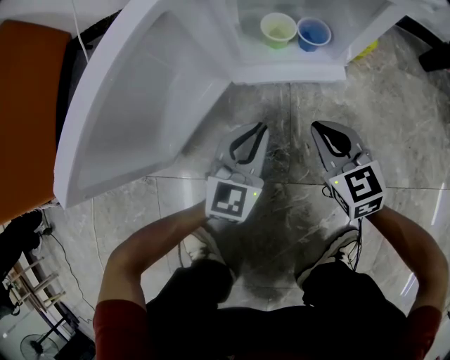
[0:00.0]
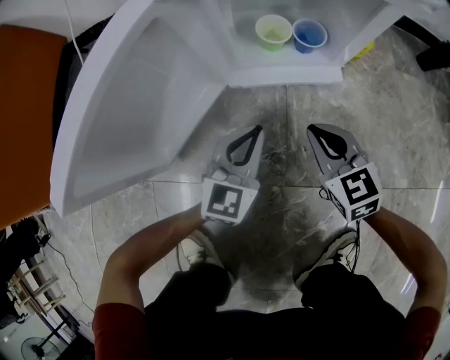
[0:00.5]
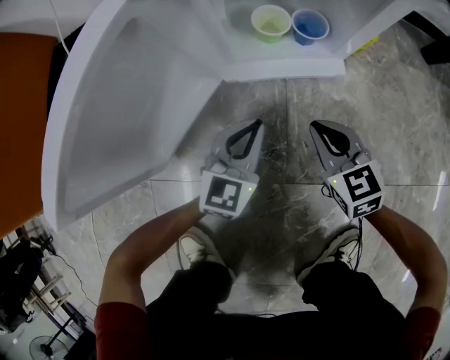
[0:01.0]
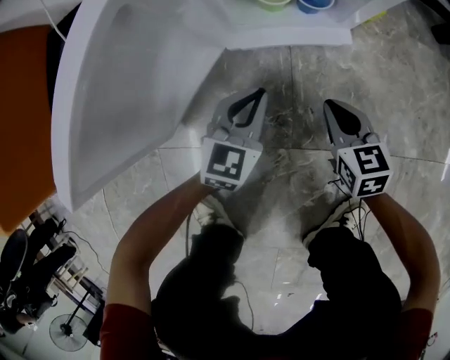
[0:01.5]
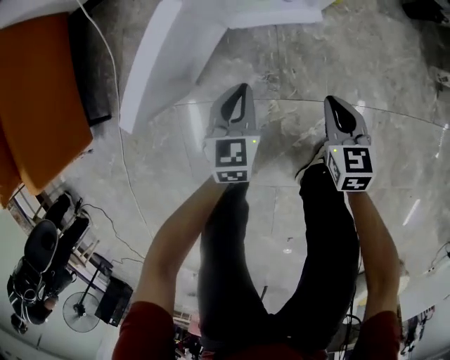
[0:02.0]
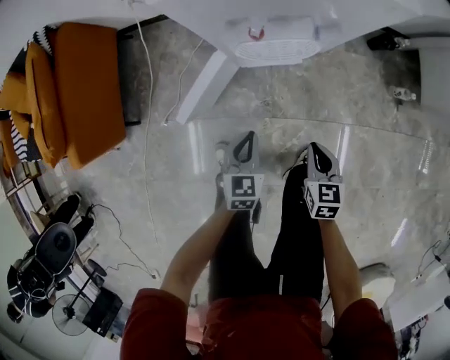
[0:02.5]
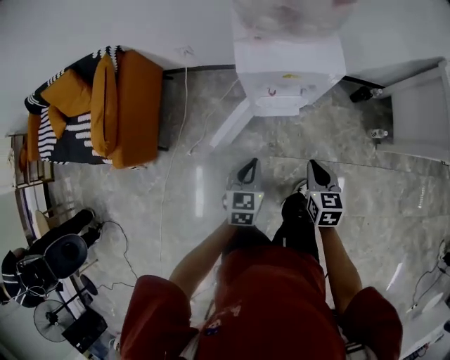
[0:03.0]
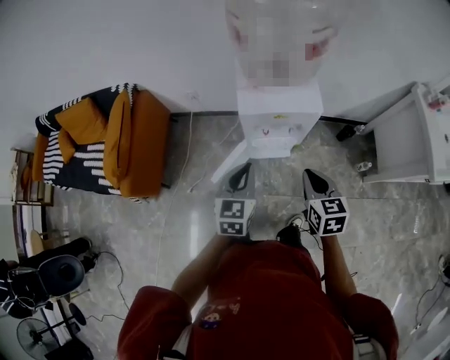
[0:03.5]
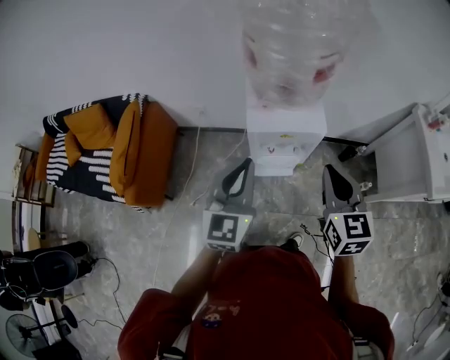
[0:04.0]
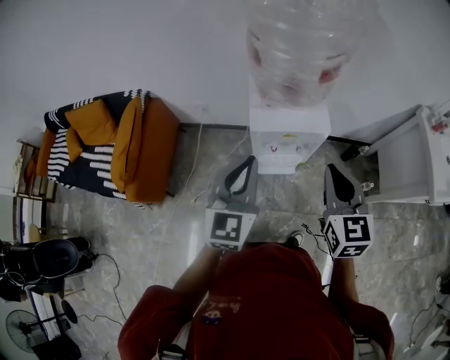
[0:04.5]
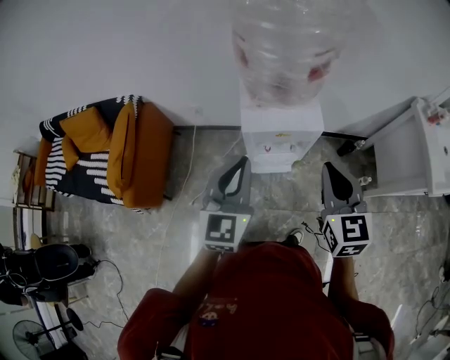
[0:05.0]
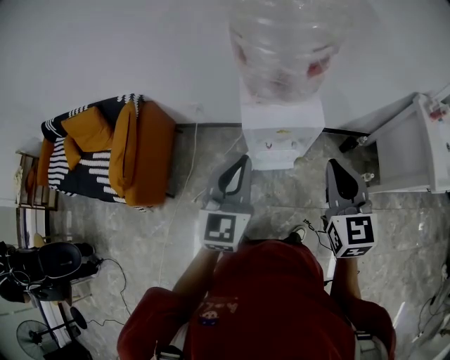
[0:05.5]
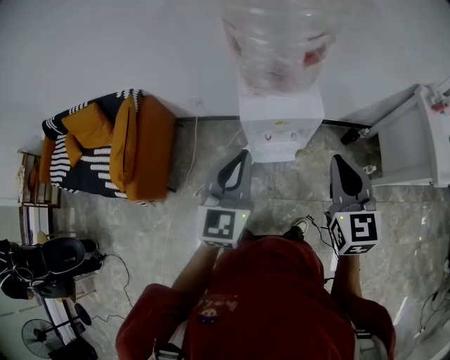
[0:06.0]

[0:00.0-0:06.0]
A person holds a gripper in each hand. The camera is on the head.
0:00.0 to 0:02.0: The left gripper heads upward, covering roughly 15 cm, and changes its angle by roughly 30 degrees; the right gripper heads upward, backward and to the right, covering some 20 cm, and swivels some 20 degrees.
0:02.0 to 0:04.0: Both grippers move upward, some 80 cm. The right gripper turns by about 30 degrees; the left gripper tips its fingers upward by about 40 degrees.
0:04.0 to 0:06.0: The grippers stay close to where they were, moving slightly.

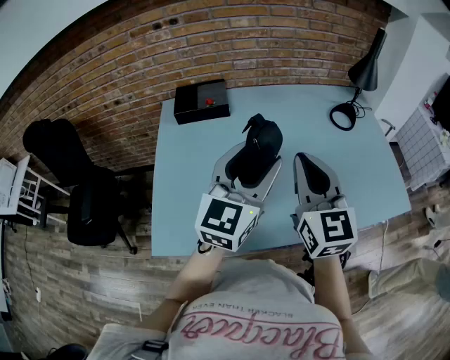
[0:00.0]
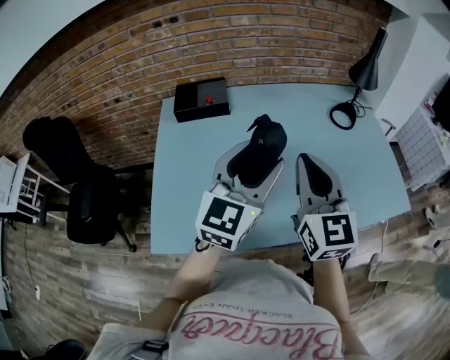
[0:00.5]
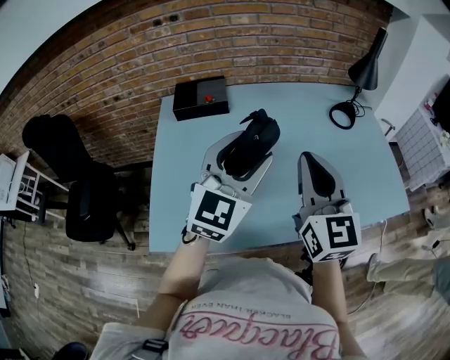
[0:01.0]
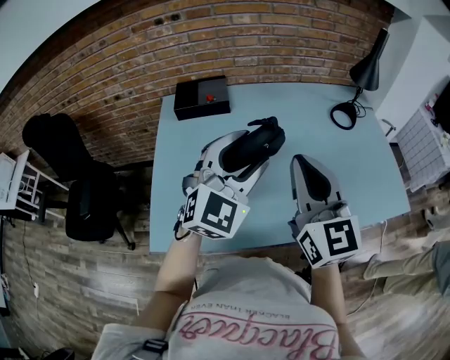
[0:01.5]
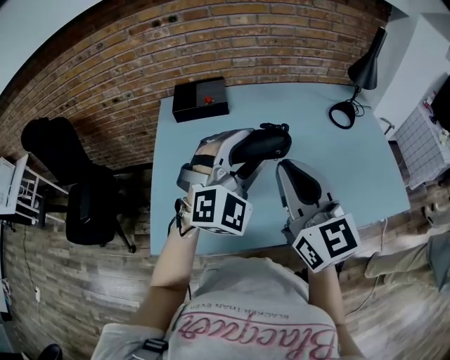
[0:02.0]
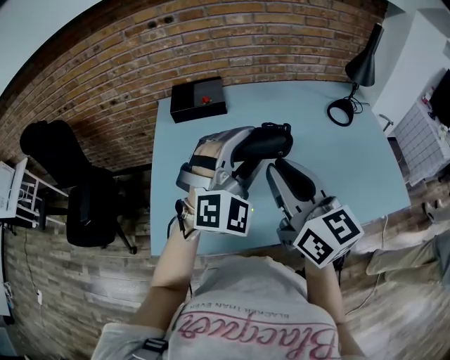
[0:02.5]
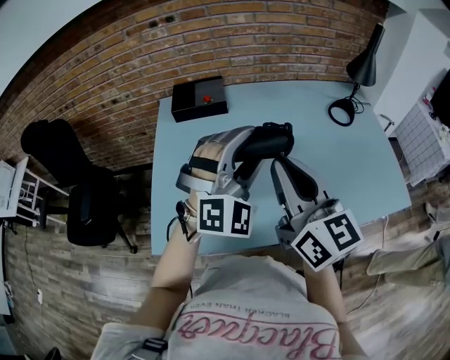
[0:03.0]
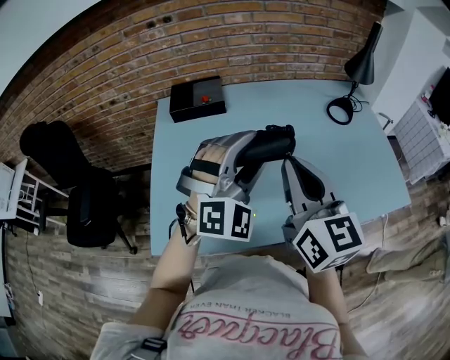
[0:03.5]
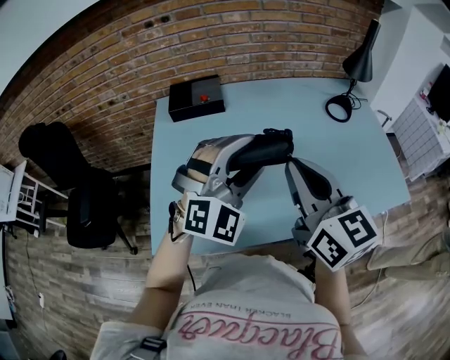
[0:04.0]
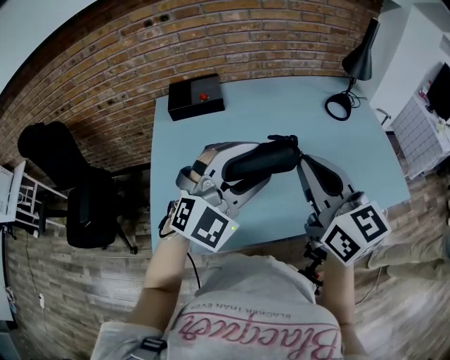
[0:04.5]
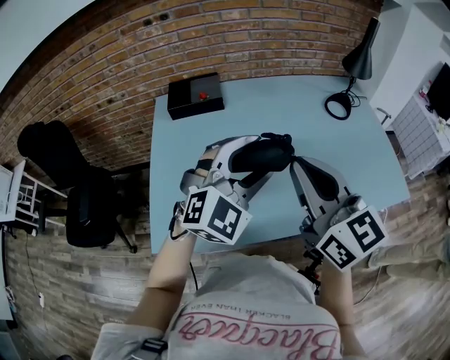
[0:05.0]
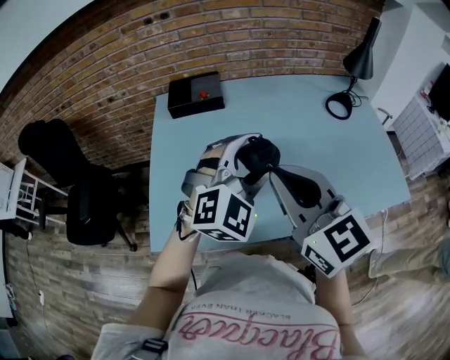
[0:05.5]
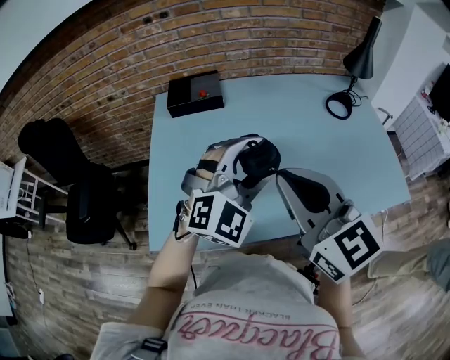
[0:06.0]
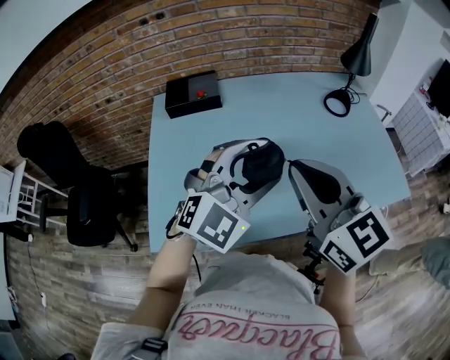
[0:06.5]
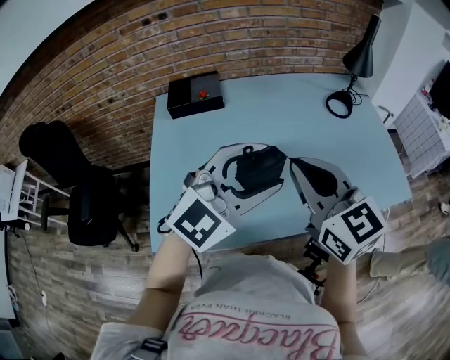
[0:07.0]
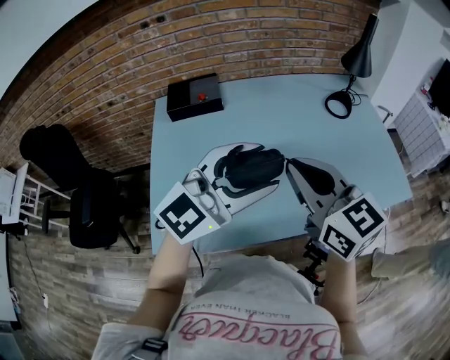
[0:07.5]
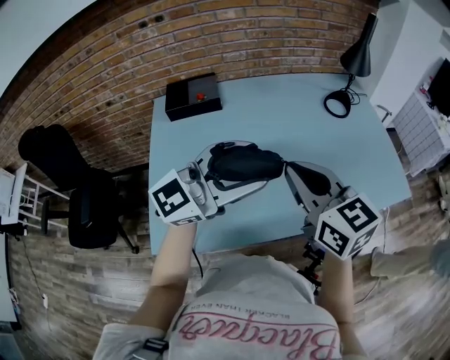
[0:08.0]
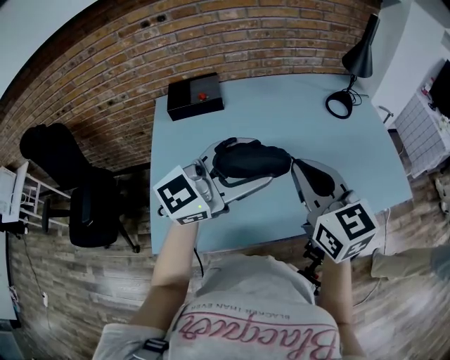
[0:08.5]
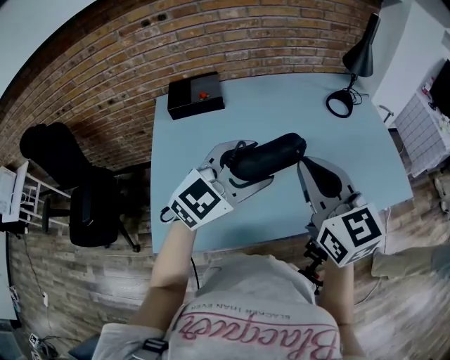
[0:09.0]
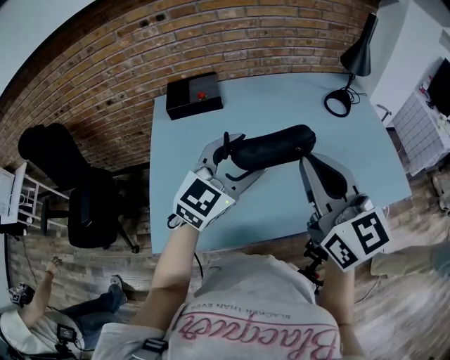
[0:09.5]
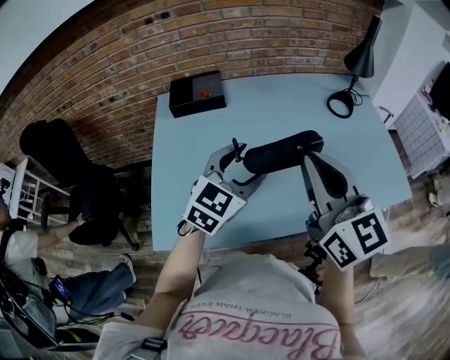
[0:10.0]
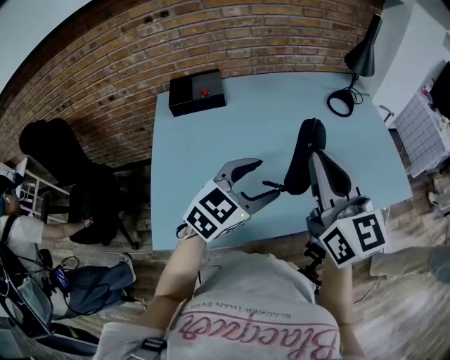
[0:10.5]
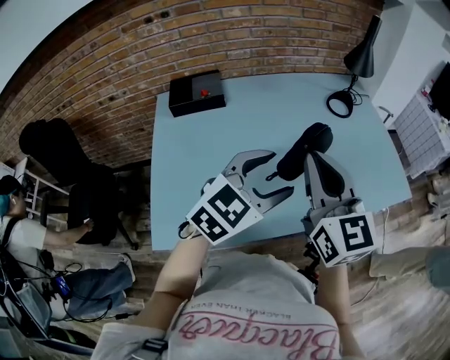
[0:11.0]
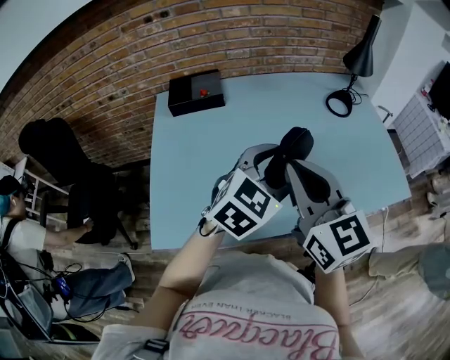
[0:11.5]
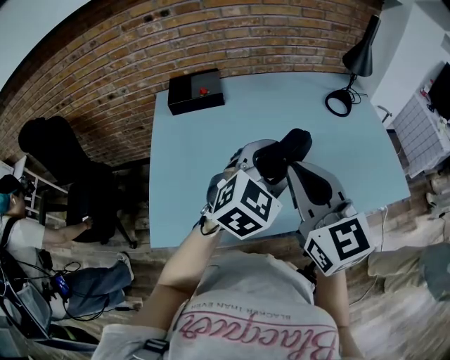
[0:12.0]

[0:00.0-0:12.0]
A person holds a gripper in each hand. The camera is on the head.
0:00.0 to 0:02.0: The right gripper moves approximately 5 cm. Meanwhile the left gripper twists roughly 50 degrees clockwise, seen from behind.
0:04.0 to 0:06.0: The grippers move only a little.
0:06.0 to 0:08.0: The left gripper moves some 5 cm, and changes its angle by some 60 degrees. Meanwhile the right gripper moves some 5 cm.
0:08.0 to 0:10.0: The left gripper is displaced downward by some 10 cm, and changes its angle by approximately 40 degrees. The right gripper moves upward, about 5 cm.
0:10.0 to 0:12.0: The left gripper heads to the right, covering some 5 cm.

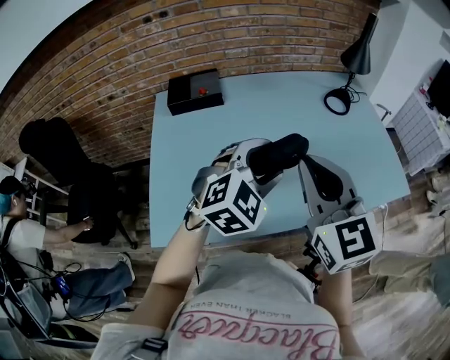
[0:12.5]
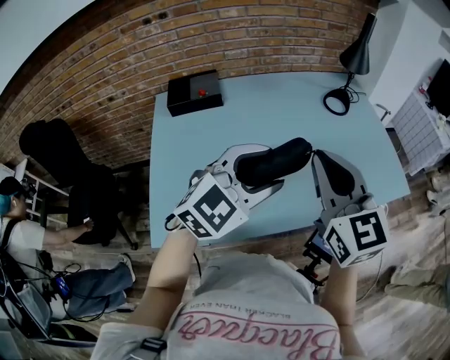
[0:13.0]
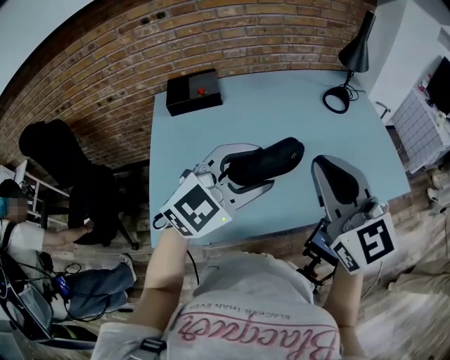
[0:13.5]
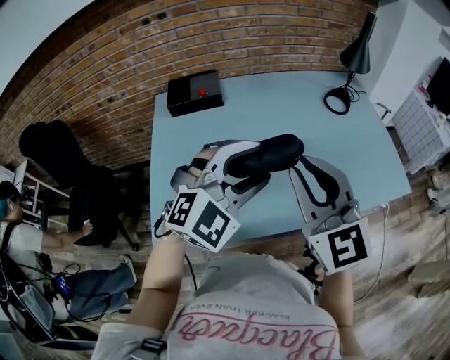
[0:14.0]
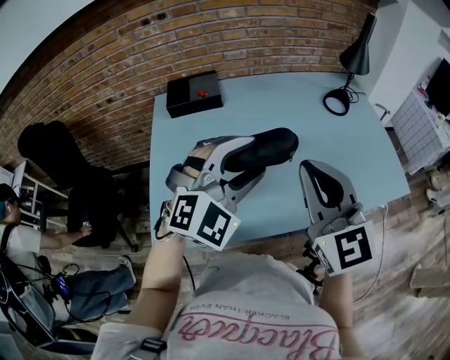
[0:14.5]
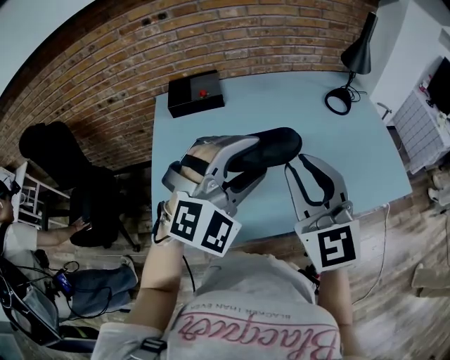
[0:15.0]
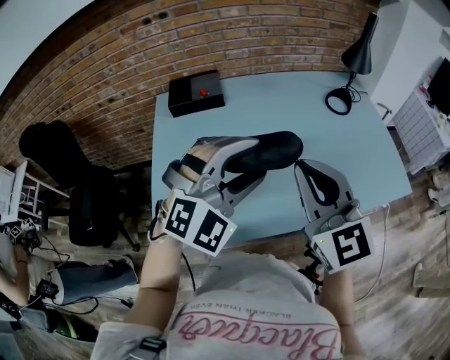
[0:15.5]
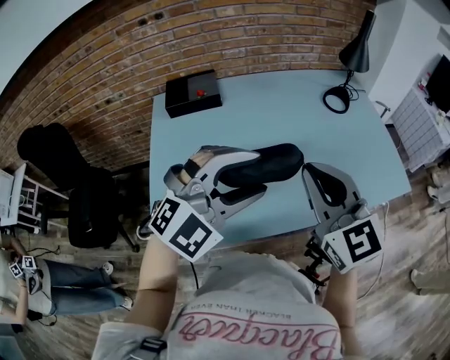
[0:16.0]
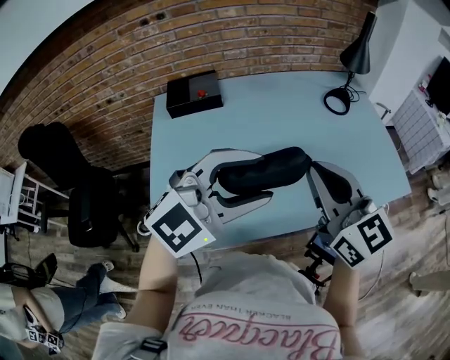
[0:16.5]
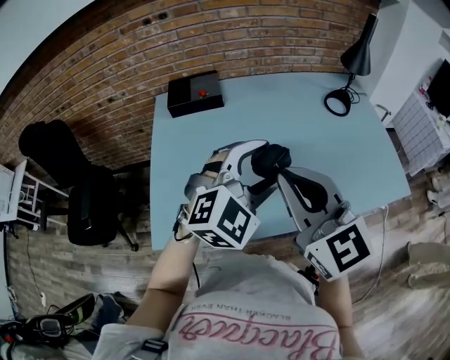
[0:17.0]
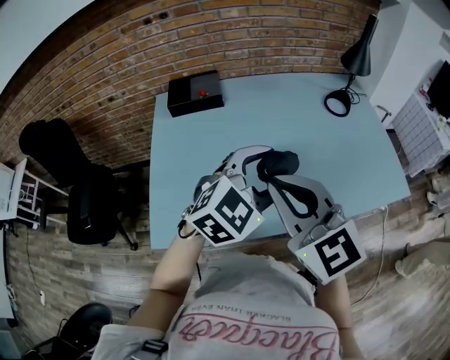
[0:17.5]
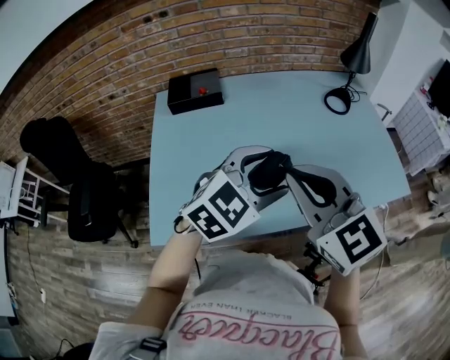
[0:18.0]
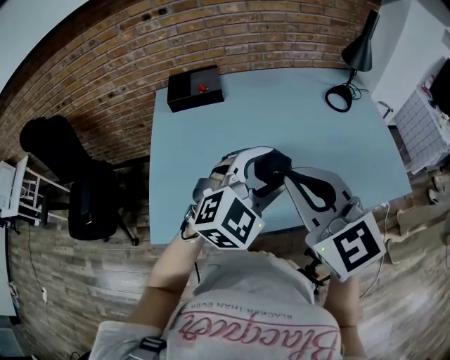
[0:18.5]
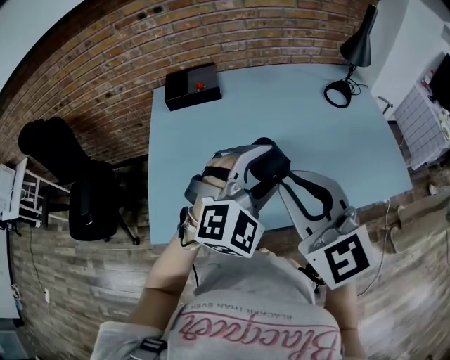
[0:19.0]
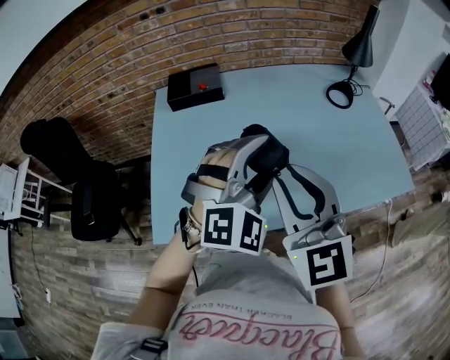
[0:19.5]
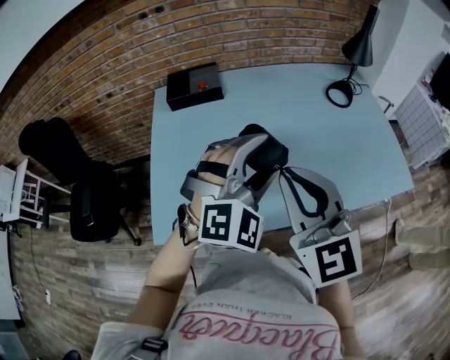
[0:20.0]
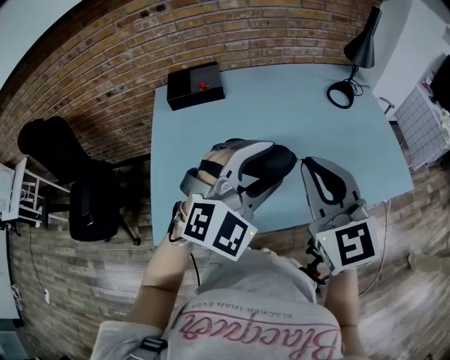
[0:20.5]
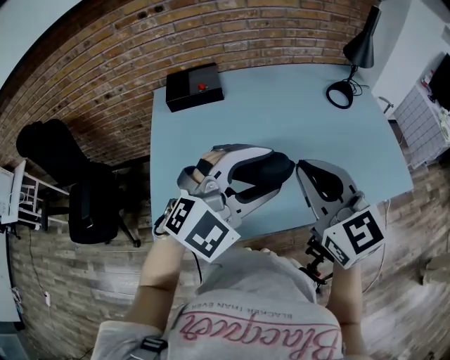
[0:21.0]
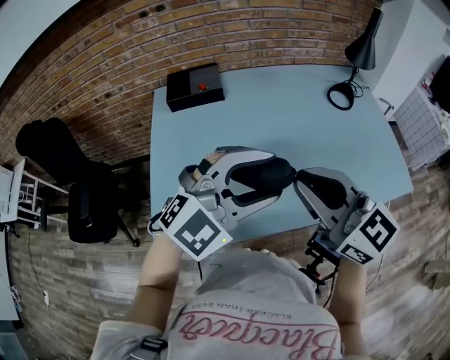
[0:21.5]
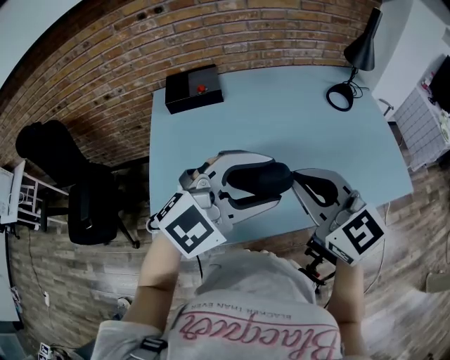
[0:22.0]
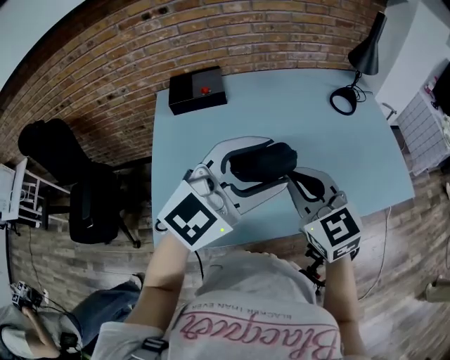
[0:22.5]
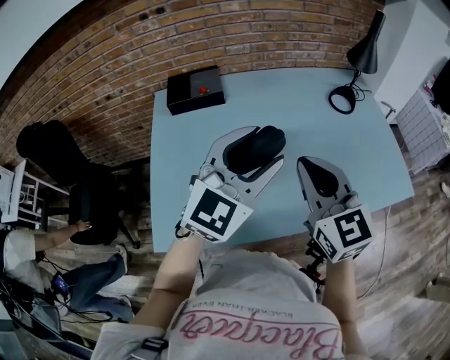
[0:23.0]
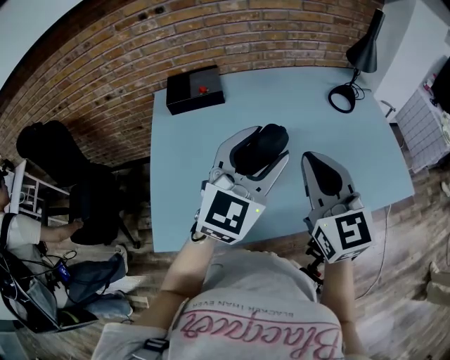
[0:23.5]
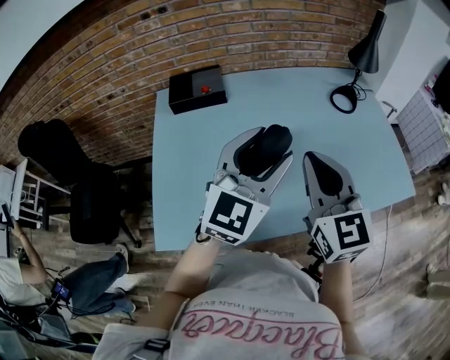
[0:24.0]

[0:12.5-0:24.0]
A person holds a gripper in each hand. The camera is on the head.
0:12.5 to 0:14.5: The left gripper changes place by about 5 cm, and rotates roughly 20 degrees.
0:14.5 to 0:16.5: The left gripper moves backward, some 5 cm, and changes its angle by approximately 30 degrees.
0:16.5 to 0:18.5: The left gripper moves downward, approximately 5 cm, and swivels approximately 20 degrees.
0:18.5 to 0:20.0: The left gripper changes its angle by some 20 degrees.
0:20.0 to 0:22.0: The left gripper shifts by roughly 5 cm, and swivels approximately 40 degrees.
0:22.0 to 0:24.0: The left gripper travels forward by approximately 10 cm, and rotates some 40 degrees. Meanwhile the right gripper goes approximately 5 cm forward, and rotates about 20 degrees.
